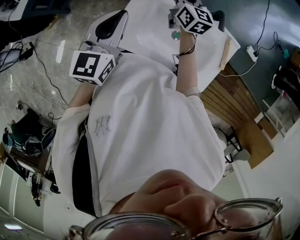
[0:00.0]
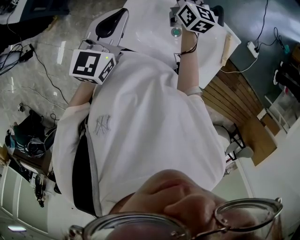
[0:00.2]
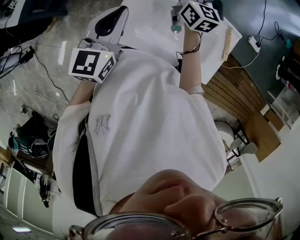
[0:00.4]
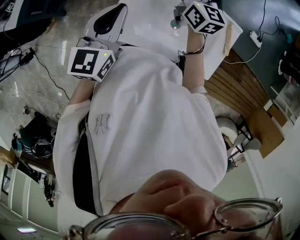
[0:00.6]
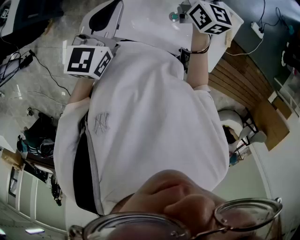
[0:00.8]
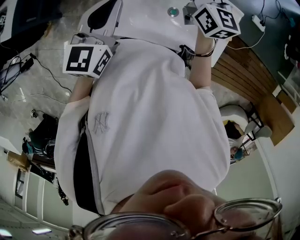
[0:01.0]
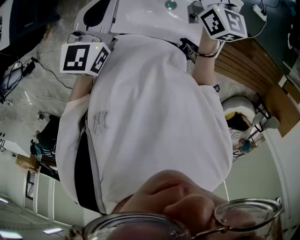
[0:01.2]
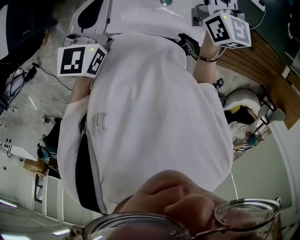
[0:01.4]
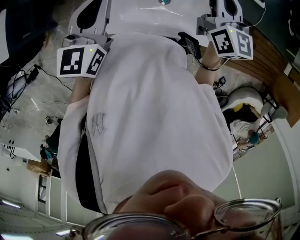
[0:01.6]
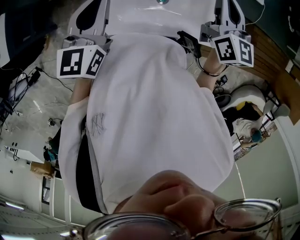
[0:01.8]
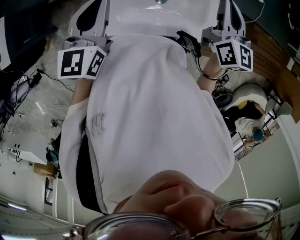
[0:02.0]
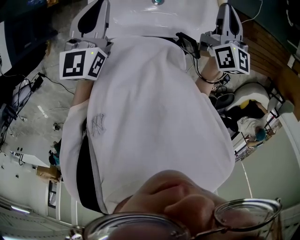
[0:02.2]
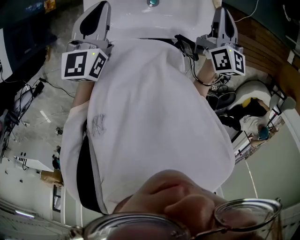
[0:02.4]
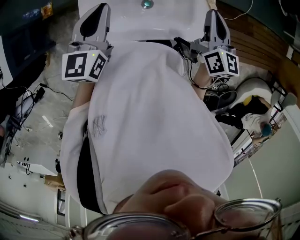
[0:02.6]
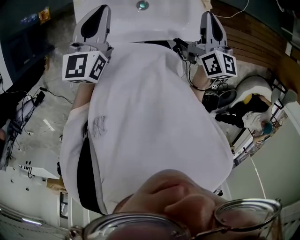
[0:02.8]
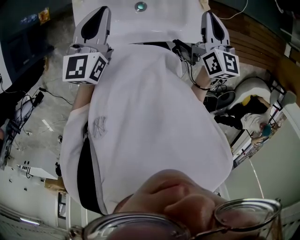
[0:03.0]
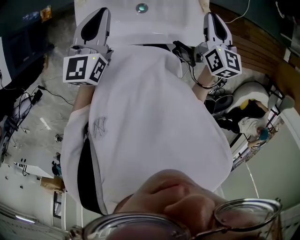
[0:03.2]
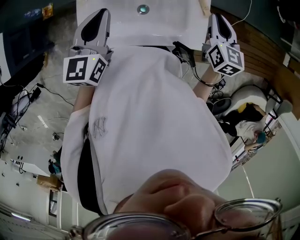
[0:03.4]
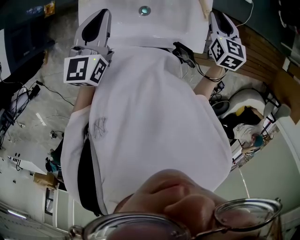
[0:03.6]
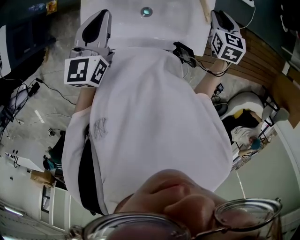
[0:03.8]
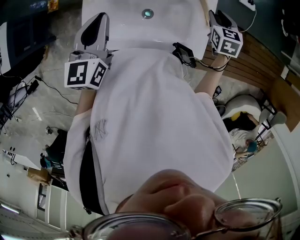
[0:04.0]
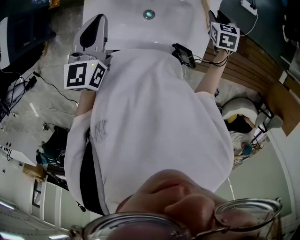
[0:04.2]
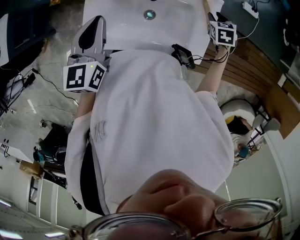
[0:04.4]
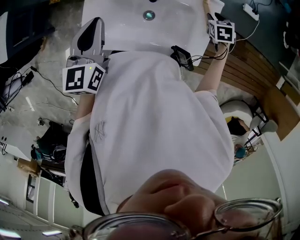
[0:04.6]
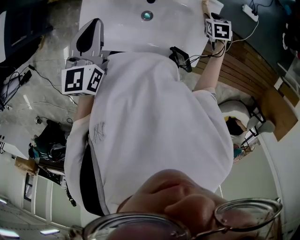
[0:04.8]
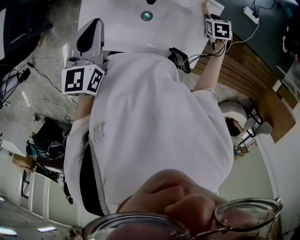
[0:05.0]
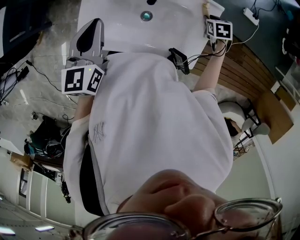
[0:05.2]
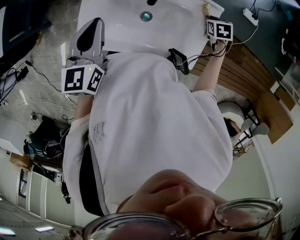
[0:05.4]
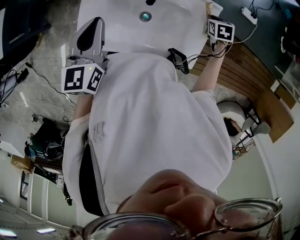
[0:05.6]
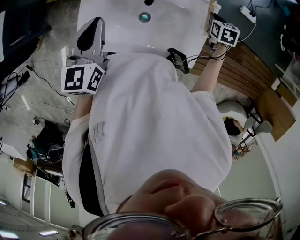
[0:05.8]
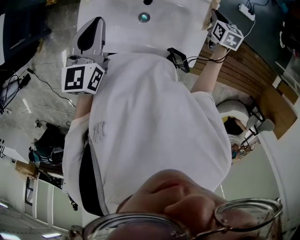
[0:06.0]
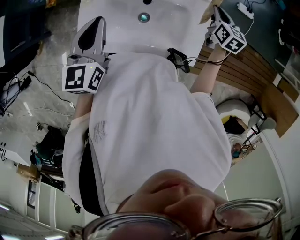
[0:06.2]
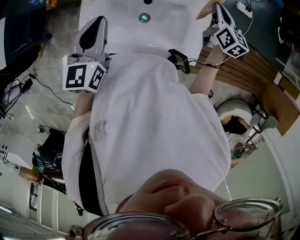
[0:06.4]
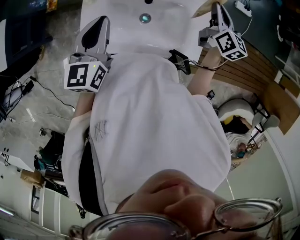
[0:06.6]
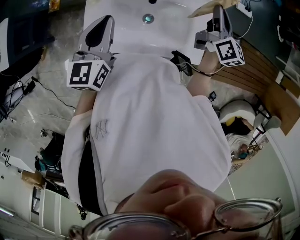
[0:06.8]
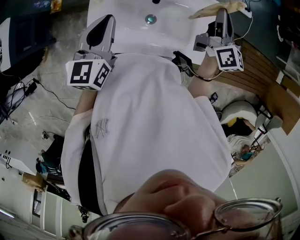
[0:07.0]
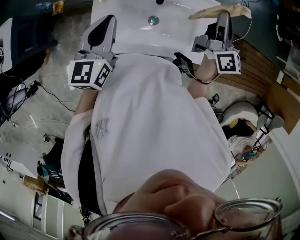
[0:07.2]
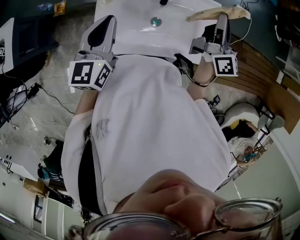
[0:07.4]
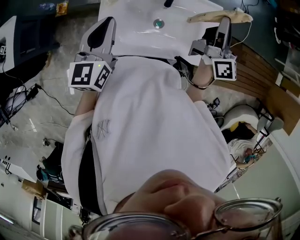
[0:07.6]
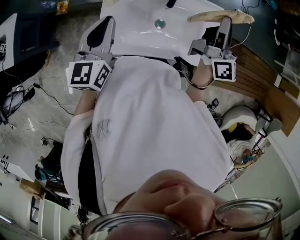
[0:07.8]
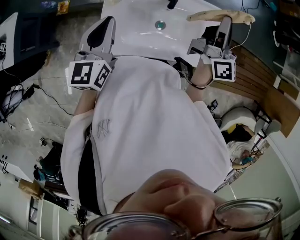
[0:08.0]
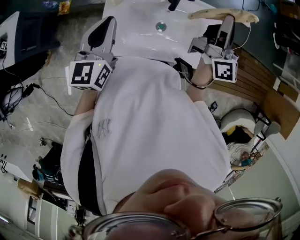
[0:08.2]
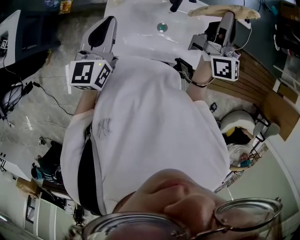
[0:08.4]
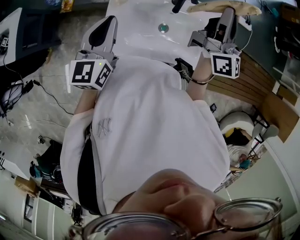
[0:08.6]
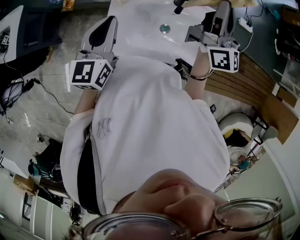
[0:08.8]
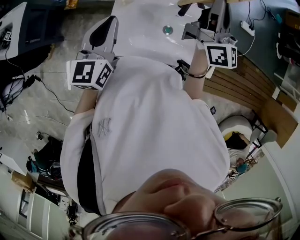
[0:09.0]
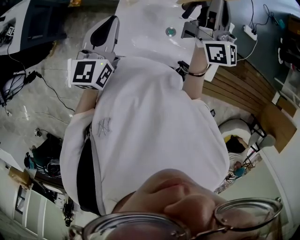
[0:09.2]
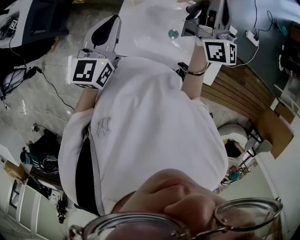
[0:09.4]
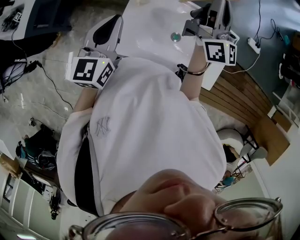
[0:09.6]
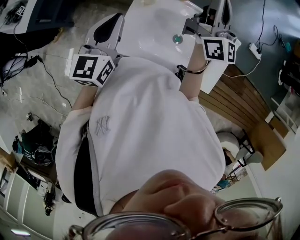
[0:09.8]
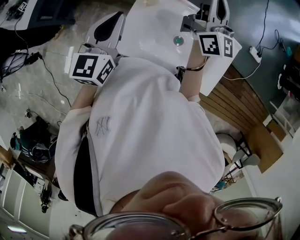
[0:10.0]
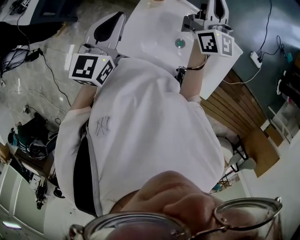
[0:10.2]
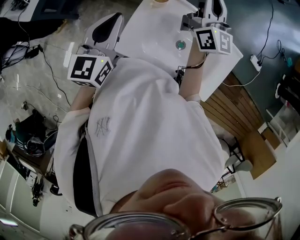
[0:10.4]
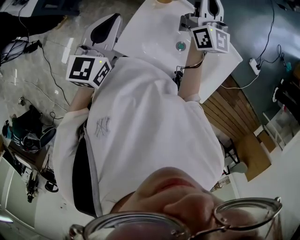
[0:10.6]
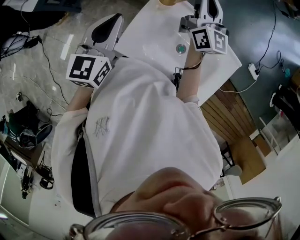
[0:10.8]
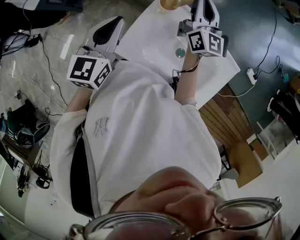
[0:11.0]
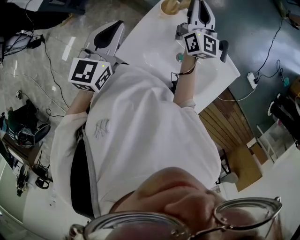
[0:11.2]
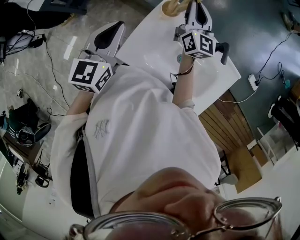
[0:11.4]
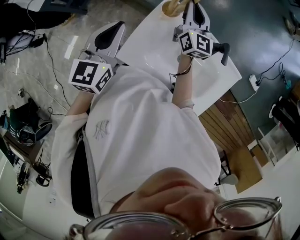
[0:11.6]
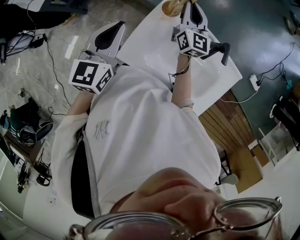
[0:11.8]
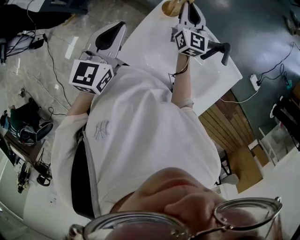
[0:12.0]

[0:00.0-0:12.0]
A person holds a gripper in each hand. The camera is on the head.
0:00.0 to 0:01.6: The left gripper goes about 5 cm to the right, while the right gripper shifts roughly 25 cm to the right, backward and upward, and rotates approximately 20 degrees.
0:01.6 to 0:03.0: The right gripper heads to the right and backward, covering roughly 15 cm. Meanwhile the left gripper travels to the right by roughly 10 cm.
0:03.0 to 0:04.4: The right gripper is displaced downward and forward by roughly 25 cm, angles its fingers downward, by some 40 degrees, and opens its fingers; the left gripper travels to the left by approximately 5 cm.
0:04.4 to 0:06.0: The right gripper travels downward and back again, approximately 5 cm each way, rotates some 20 degrees, and closes.
0:06.0 to 0:07.6: The right gripper heads upward, backward and to the left, covering about 30 cm, and tilts its fingers some 60 degrees upward. Meanwhile the left gripper moves some 5 cm.
0:07.6 to 0:09.0: The right gripper shifts approximately 15 cm to the left, forward and upward.
0:09.0 to 0:10.4: The left gripper heads to the left, covering approximately 5 cm. The right gripper goes about 20 cm to the left and forward.
0:10.4 to 0:12.0: The right gripper is displaced downward and to the left by approximately 15 cm.

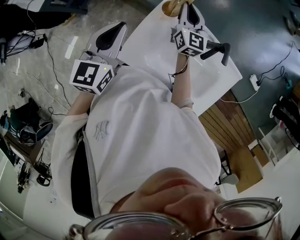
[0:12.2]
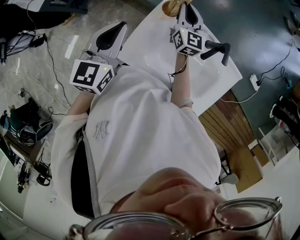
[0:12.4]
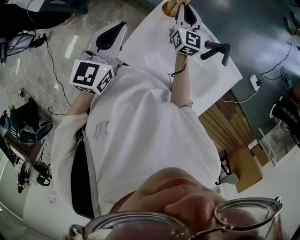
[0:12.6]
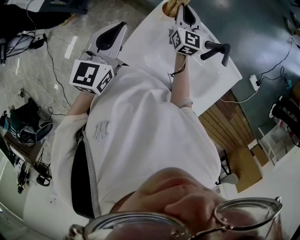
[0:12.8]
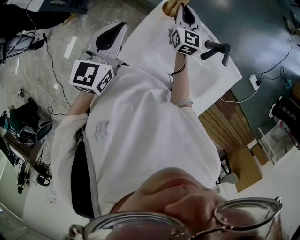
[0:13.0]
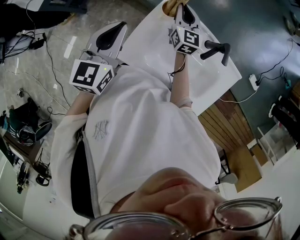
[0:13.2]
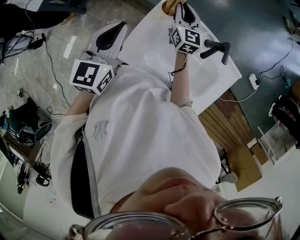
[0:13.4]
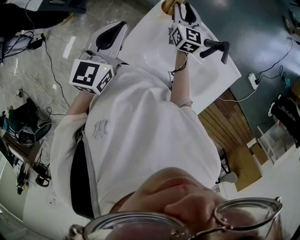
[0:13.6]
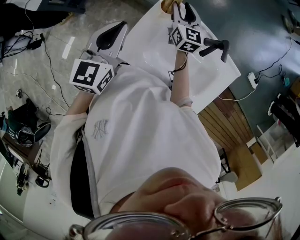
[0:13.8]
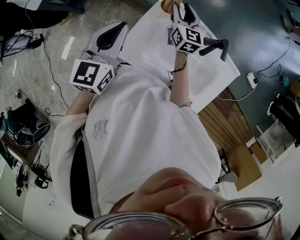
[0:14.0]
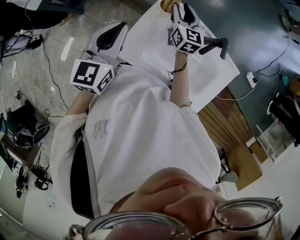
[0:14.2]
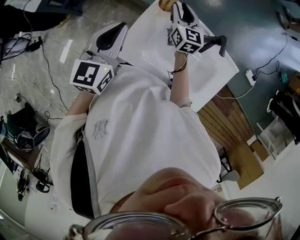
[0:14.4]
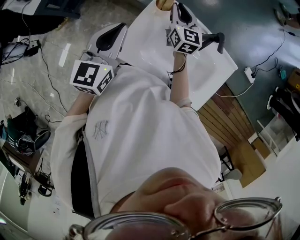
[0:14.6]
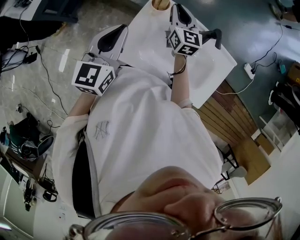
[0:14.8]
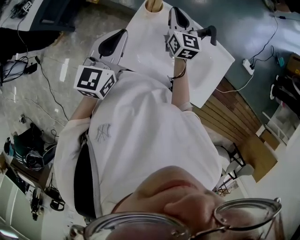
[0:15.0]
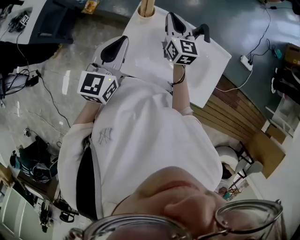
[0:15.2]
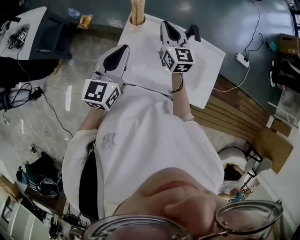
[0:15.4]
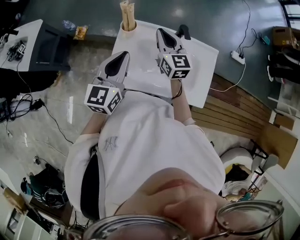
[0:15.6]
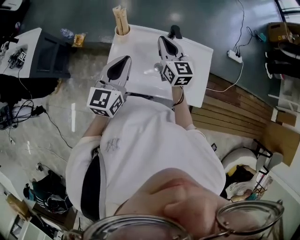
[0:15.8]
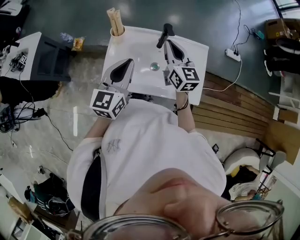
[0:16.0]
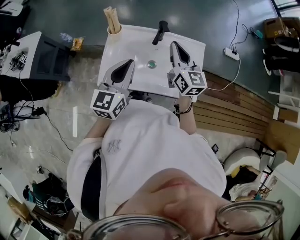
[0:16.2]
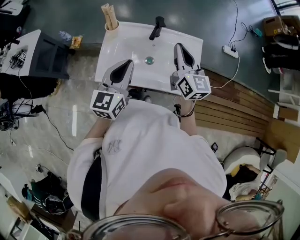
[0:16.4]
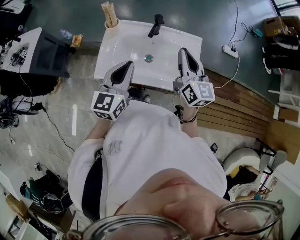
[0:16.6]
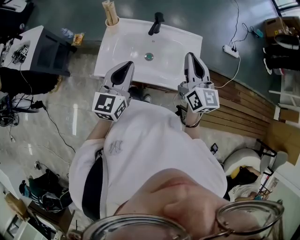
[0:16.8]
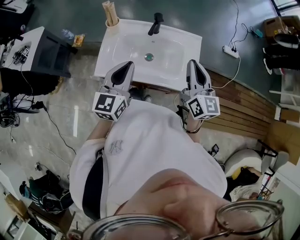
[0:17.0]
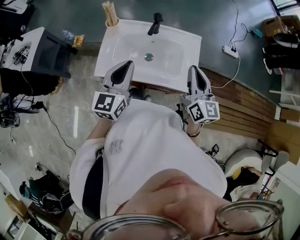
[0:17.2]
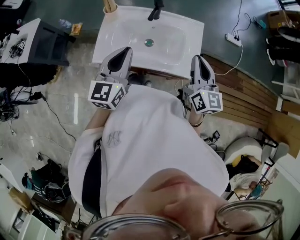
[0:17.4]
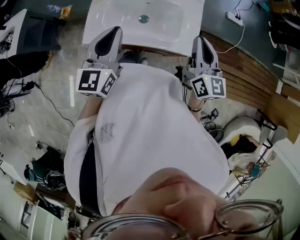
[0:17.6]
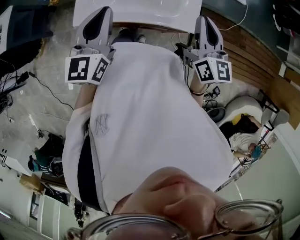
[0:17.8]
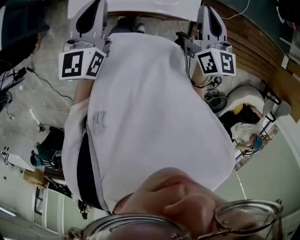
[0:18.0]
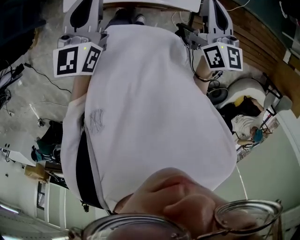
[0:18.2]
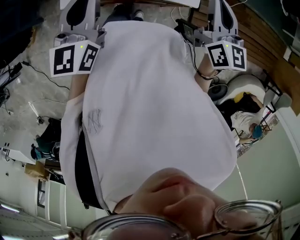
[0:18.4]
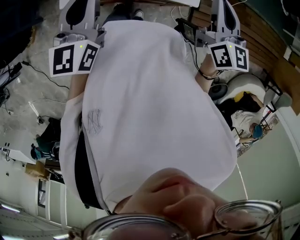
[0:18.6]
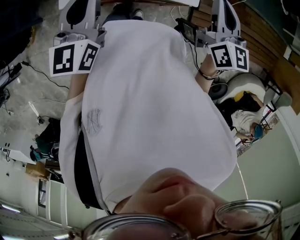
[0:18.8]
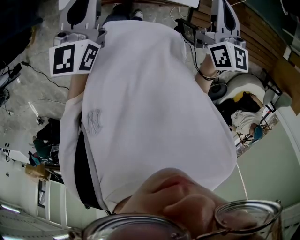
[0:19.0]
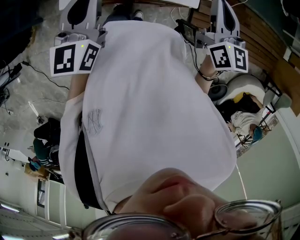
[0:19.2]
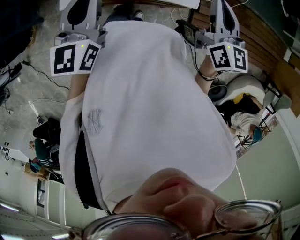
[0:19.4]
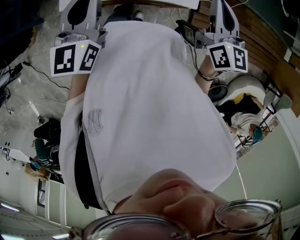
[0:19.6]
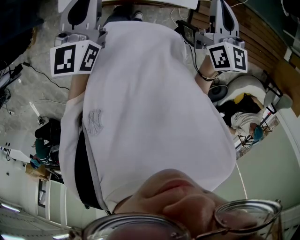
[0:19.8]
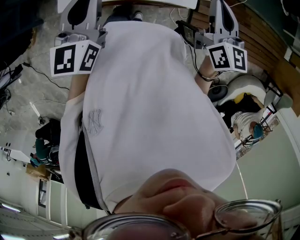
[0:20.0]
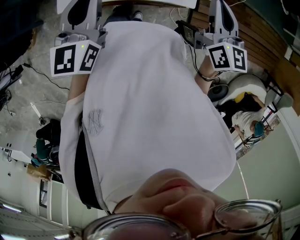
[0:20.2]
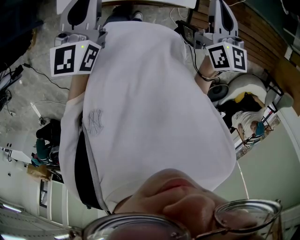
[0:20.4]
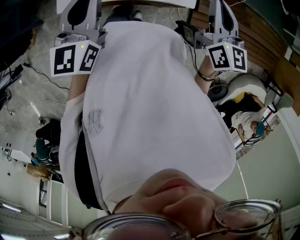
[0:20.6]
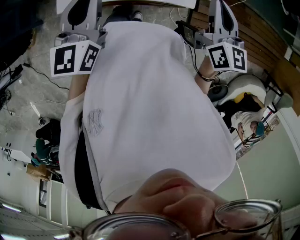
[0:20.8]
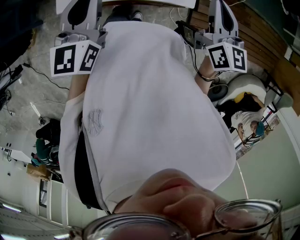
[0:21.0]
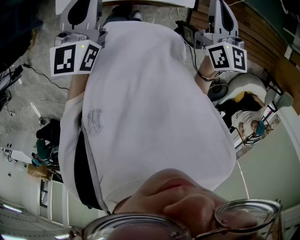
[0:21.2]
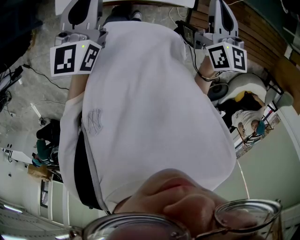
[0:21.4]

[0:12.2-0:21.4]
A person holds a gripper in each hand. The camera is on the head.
0:12.2 to 0:13.8: The right gripper opens.
0:13.8 to 0:15.2: The right gripper moves upward, backward and to the right, approximately 10 cm, and closes up; the left gripper heads to the right, covering about 5 cm.
0:15.2 to 0:16.8: The right gripper heads to the right, backward and upward, covering about 40 cm, while the left gripper heads to the right and backward, covering roughly 25 cm.
0:16.8 to 0:18.4: The right gripper heads backward and to the right, covering some 10 cm.
0:18.4 to 0:19.8: The grippers stay close to where they were, moving slightly.
0:19.8 to 0:21.4: The two grippers keep their place.

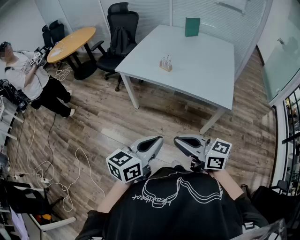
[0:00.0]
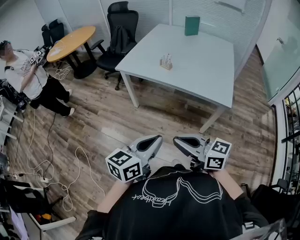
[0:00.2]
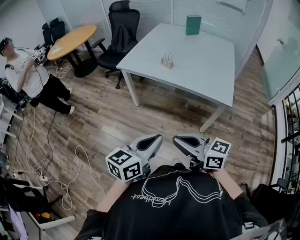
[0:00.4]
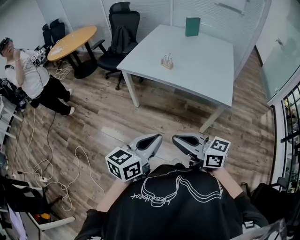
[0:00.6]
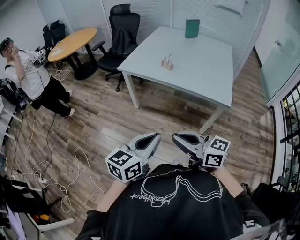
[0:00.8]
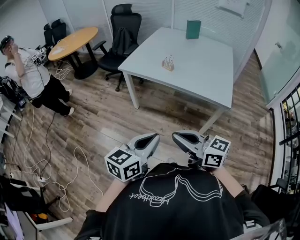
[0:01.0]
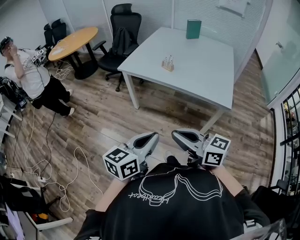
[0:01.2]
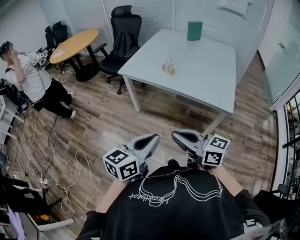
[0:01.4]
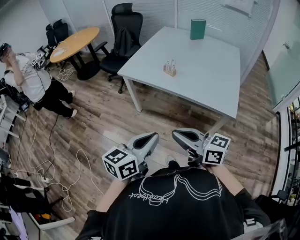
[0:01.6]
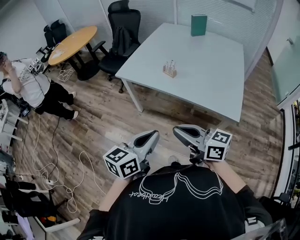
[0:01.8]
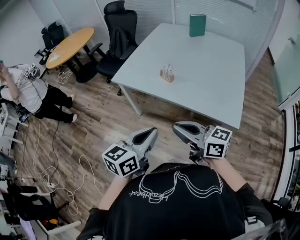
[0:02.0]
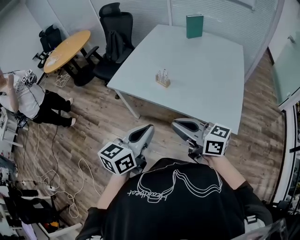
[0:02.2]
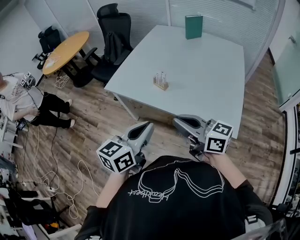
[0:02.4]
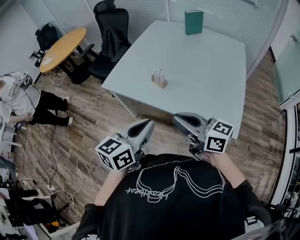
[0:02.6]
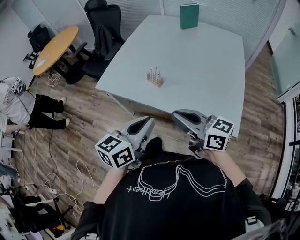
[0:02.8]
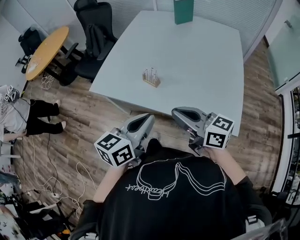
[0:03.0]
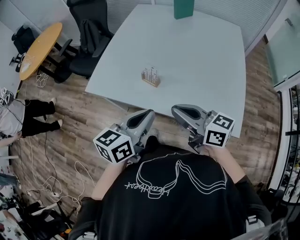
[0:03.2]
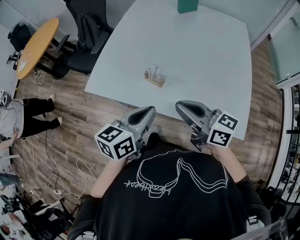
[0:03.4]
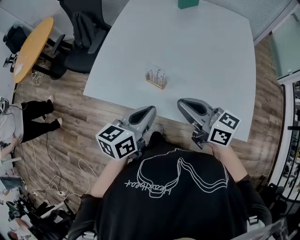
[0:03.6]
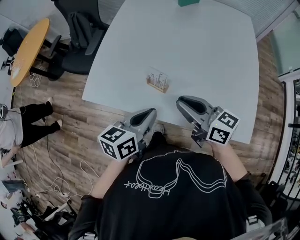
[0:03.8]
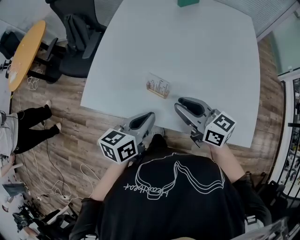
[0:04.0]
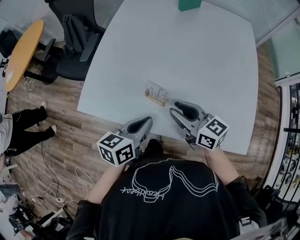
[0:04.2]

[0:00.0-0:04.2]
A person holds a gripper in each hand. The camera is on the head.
0:00.0 to 0:01.4: The grippers move only a little.
0:01.4 to 0:02.8: The two grippers go about 35 cm forward and to the right.
0:02.8 to 0:04.2: The two grippers go about 25 cm forward and downward. The right gripper opens its fingers.
